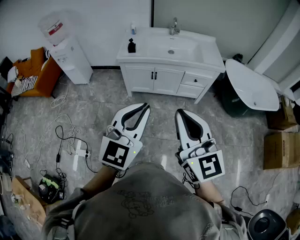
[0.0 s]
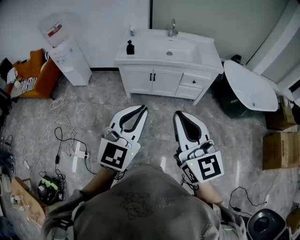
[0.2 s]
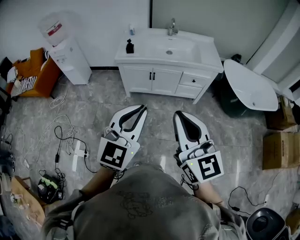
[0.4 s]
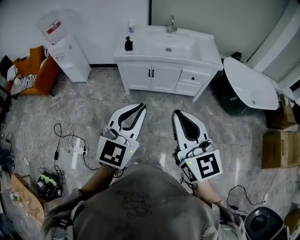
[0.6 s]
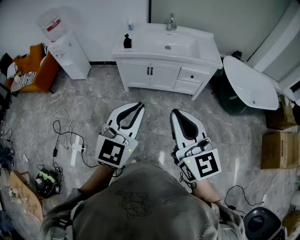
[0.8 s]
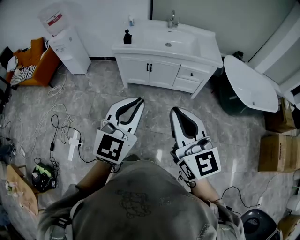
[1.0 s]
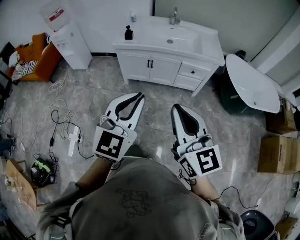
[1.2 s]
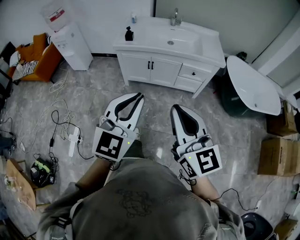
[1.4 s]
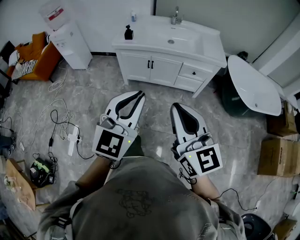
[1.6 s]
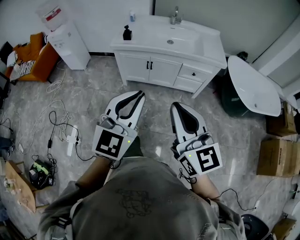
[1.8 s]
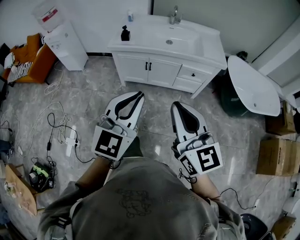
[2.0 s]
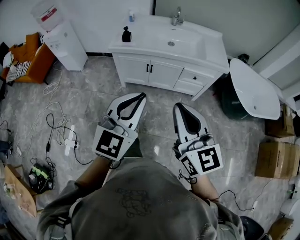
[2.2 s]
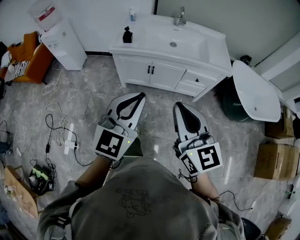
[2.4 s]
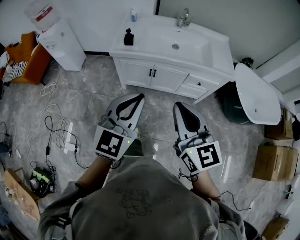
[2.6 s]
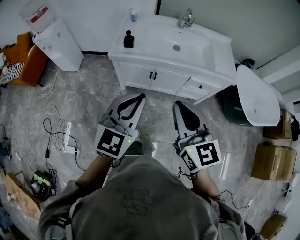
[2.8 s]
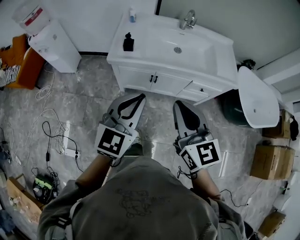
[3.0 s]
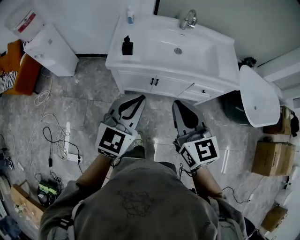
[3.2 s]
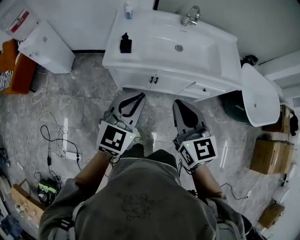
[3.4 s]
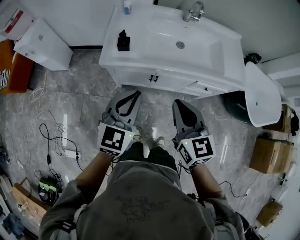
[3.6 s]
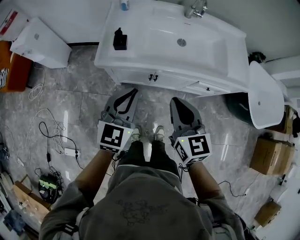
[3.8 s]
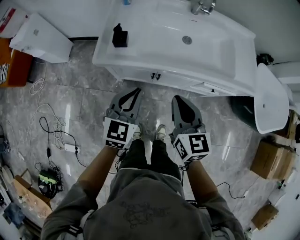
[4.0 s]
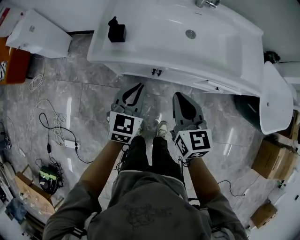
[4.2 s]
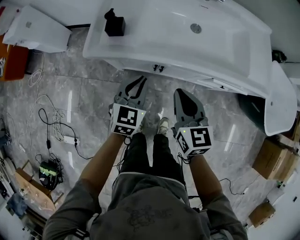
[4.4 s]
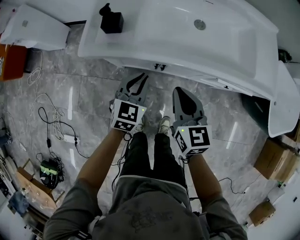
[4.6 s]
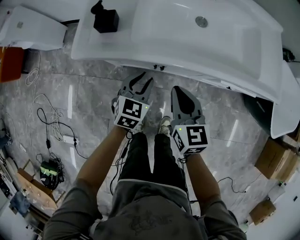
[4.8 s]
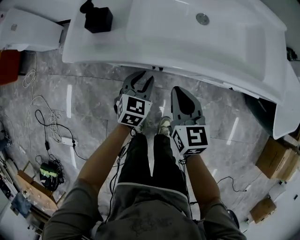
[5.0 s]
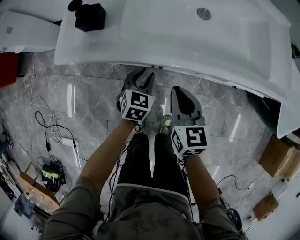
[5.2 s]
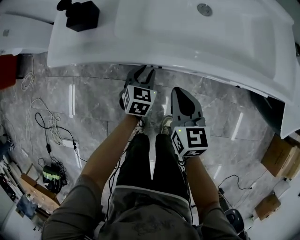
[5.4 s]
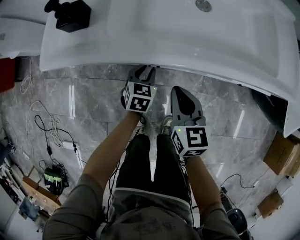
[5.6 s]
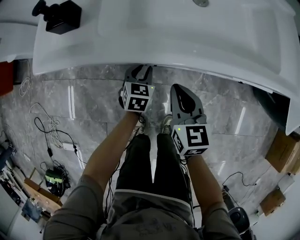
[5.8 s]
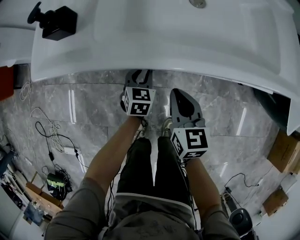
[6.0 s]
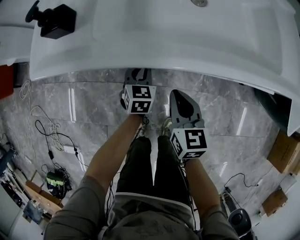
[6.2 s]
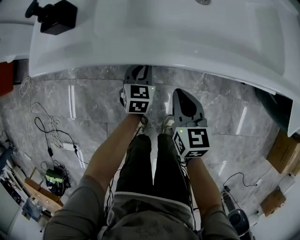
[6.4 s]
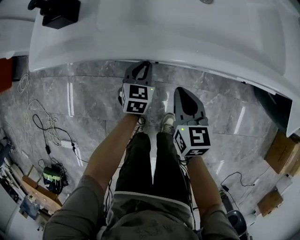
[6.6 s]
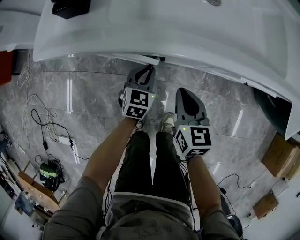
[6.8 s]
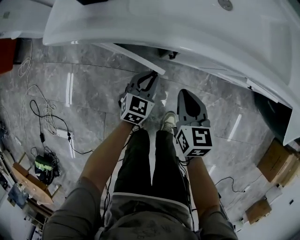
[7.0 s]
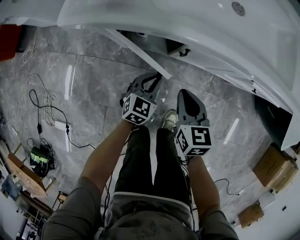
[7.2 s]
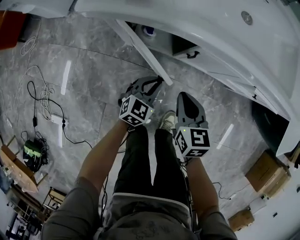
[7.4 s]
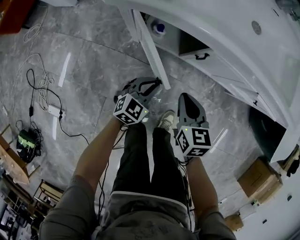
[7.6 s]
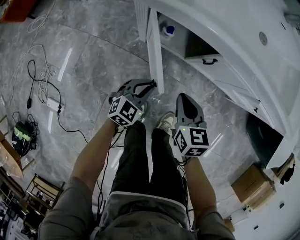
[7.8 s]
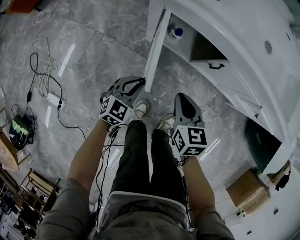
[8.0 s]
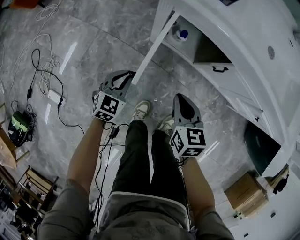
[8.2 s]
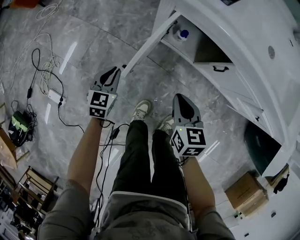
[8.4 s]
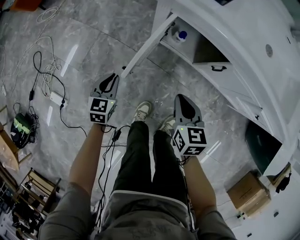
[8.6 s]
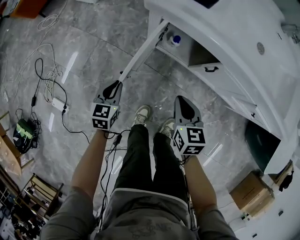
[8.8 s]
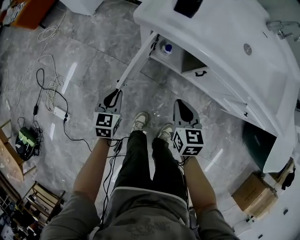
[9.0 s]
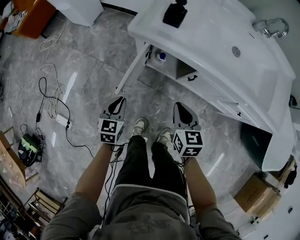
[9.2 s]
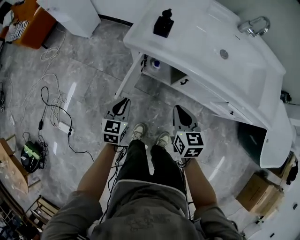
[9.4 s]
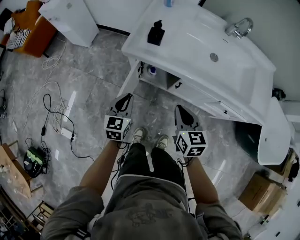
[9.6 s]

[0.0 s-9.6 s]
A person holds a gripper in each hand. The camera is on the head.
0.0 to 1.6 s: The two grippers go some 5 cm to the right.
1.6 to 3.2 s: The grippers both shift forward by roughly 35 cm.
3.2 to 4.8 s: Both grippers move downward and forward, about 40 cm. The left gripper changes its angle by about 30 degrees, and opens its fingers.
4.8 to 6.4 s: Both grippers move downward, roughly 15 cm.
6.4 to 8.0 s: The left gripper is displaced backward and to the left by some 30 cm; the right gripper travels to the left and backward by about 20 cm, and turns by approximately 20 degrees.
8.0 to 9.6 s: The two grippers go about 25 cm upward. The left gripper changes its angle by roughly 30 degrees.

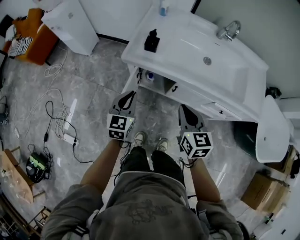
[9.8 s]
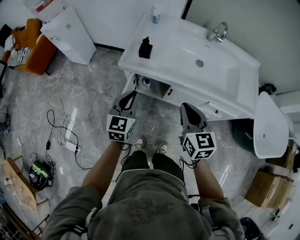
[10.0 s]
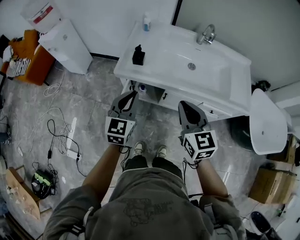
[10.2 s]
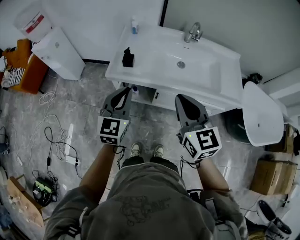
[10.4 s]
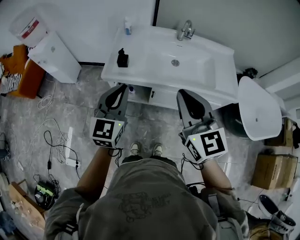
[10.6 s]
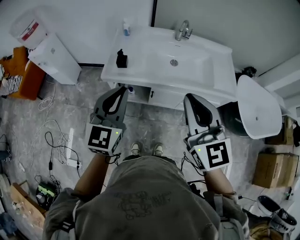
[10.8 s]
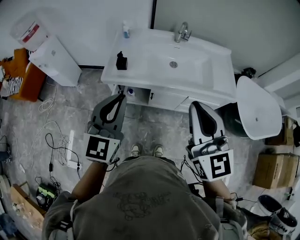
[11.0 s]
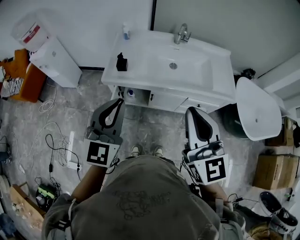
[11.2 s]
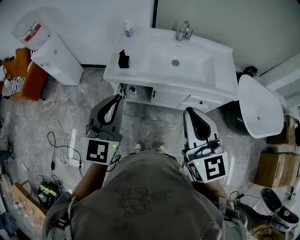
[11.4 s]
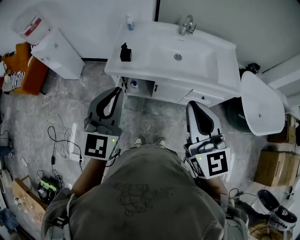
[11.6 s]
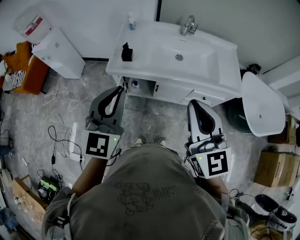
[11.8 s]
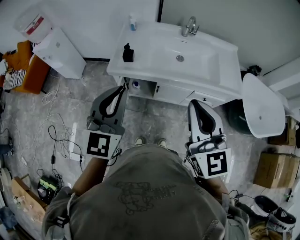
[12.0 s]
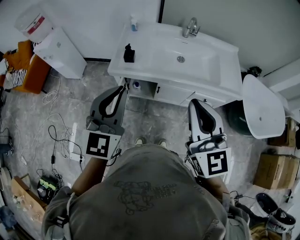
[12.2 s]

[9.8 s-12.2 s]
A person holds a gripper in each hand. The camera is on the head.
9.8 to 11.0 s: The two grippers go about 30 cm upward. The right gripper changes its angle by some 30 degrees. The left gripper rotates roughly 30 degrees.
11.0 to 12.2 s: There are only small adjustments of the grippers.

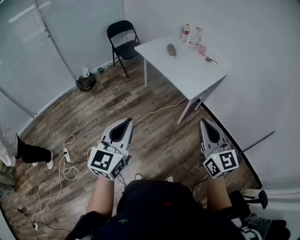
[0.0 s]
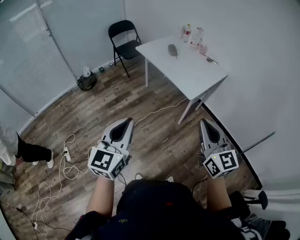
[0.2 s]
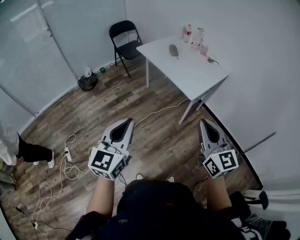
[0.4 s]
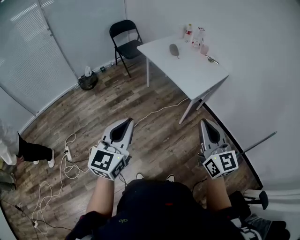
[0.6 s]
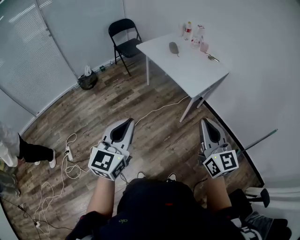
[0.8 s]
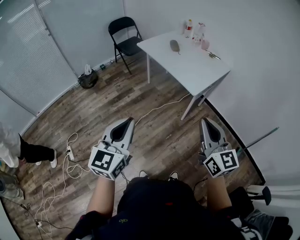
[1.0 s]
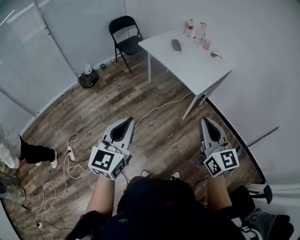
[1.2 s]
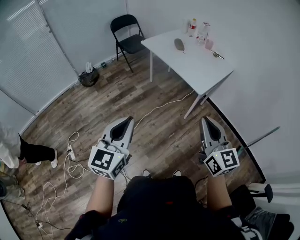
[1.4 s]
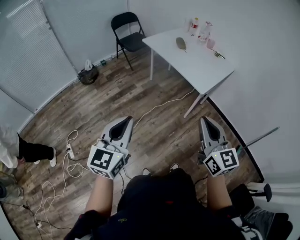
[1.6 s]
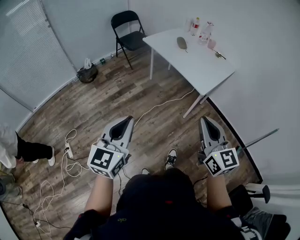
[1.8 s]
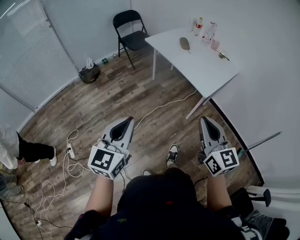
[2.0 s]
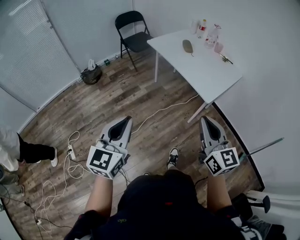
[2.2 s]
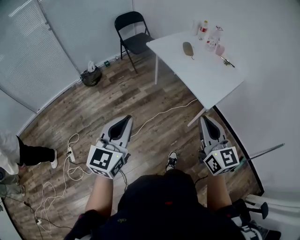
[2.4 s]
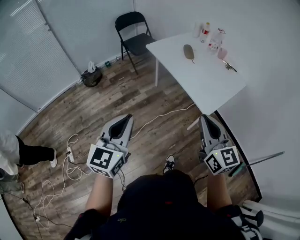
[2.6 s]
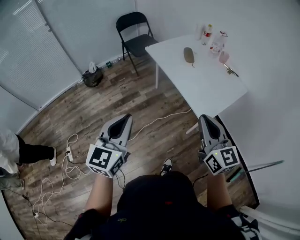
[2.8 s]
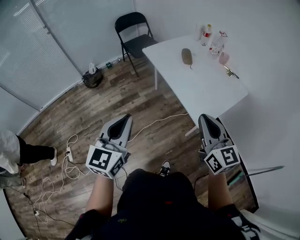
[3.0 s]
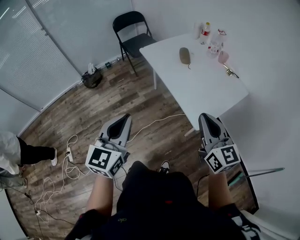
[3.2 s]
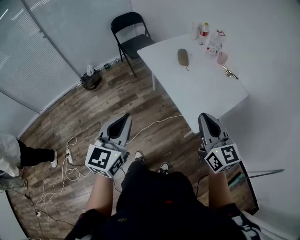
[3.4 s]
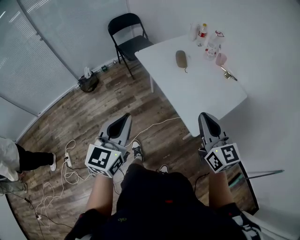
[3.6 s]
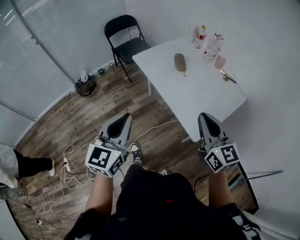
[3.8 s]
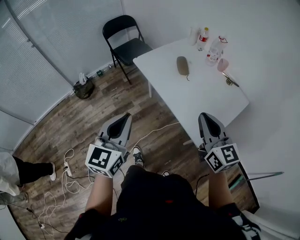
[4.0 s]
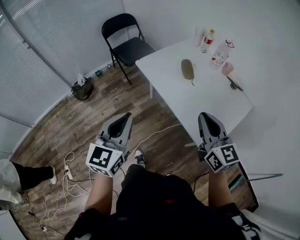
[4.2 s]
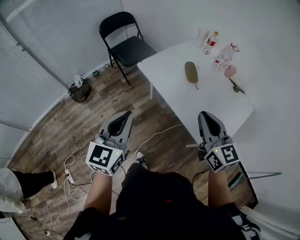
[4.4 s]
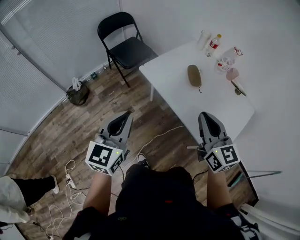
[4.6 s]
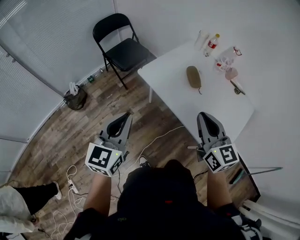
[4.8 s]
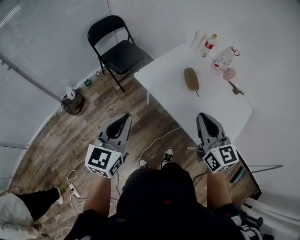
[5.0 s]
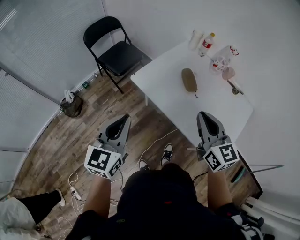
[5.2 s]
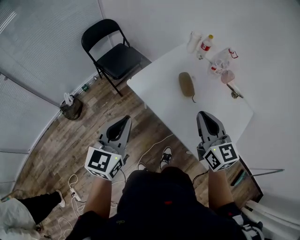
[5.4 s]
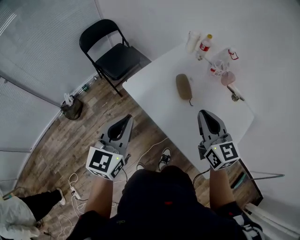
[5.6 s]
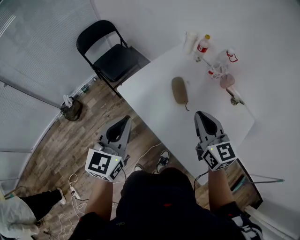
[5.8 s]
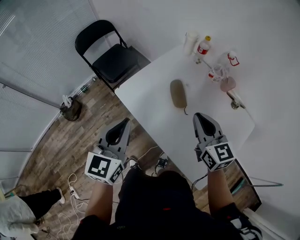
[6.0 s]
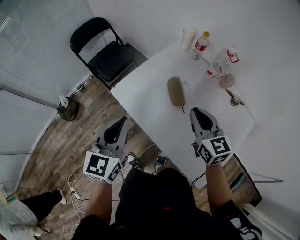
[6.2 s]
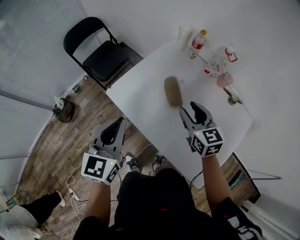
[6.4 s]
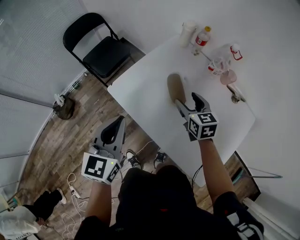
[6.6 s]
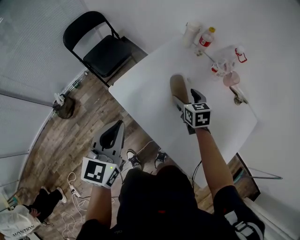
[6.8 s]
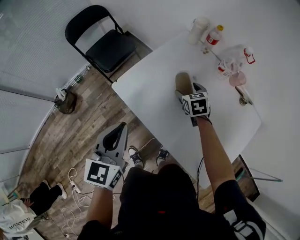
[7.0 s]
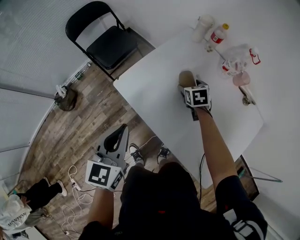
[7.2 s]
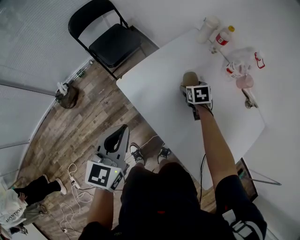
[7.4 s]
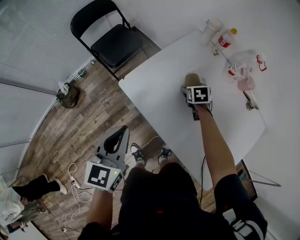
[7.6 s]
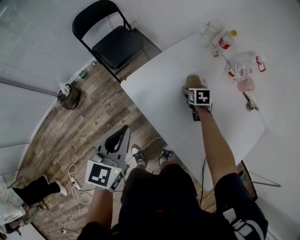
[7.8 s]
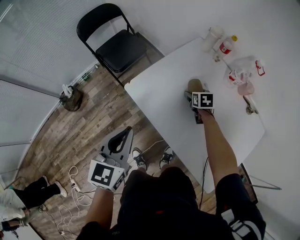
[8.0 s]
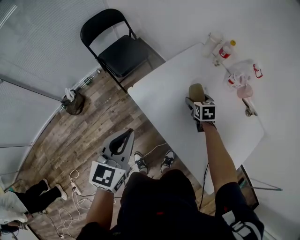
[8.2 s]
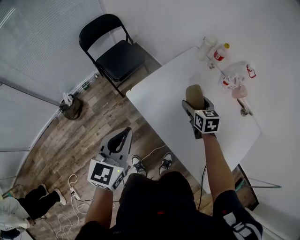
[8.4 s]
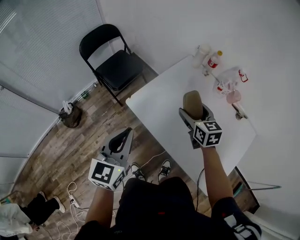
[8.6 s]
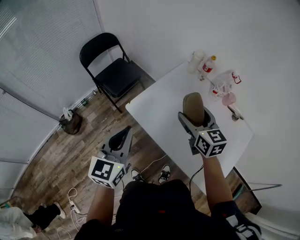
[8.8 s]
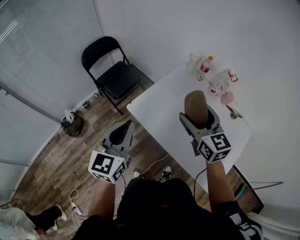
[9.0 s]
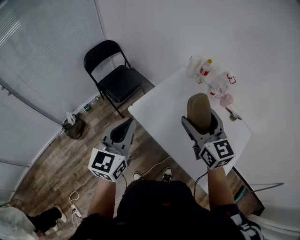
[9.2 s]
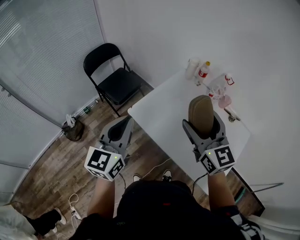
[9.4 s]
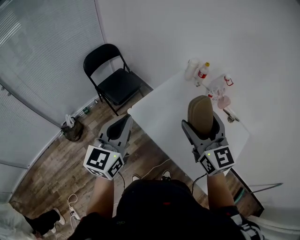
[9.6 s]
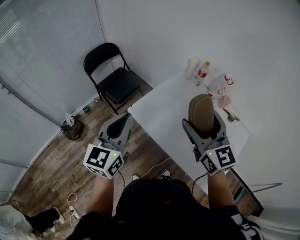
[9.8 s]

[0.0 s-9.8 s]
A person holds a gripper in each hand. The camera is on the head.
0.0 to 1.4 s: The two grippers go about 10 cm to the left.
1.4 to 2.8 s: Both grippers travel together forward, about 25 cm.
2.8 to 4.2 s: The grippers both shift forward by about 25 cm.
4.2 to 5.6 s: The two grippers go roughly 25 cm forward.
5.6 to 7.0 s: The right gripper goes some 35 cm downward and forward, tips its fingers downward by about 40 degrees, and opens its fingers. Meanwhile the left gripper is displaced forward and downward by roughly 10 cm.
7.0 to 8.4 s: The left gripper goes approximately 5 cm to the left. Meanwhile the right gripper is displaced upward by about 10 cm.
8.4 to 9.8 s: The left gripper is displaced upward by some 15 cm; the right gripper is displaced upward and backward by about 35 cm, and tilts its fingers about 30 degrees upward.

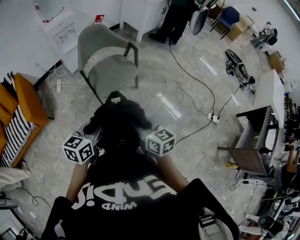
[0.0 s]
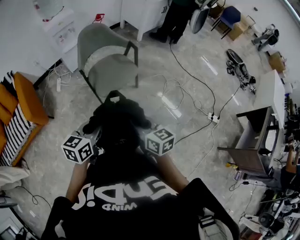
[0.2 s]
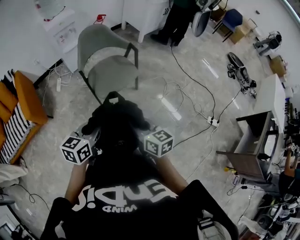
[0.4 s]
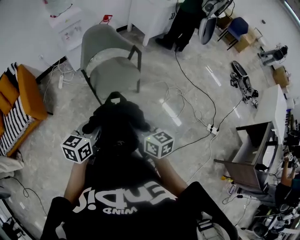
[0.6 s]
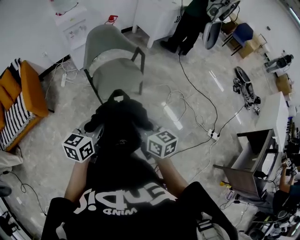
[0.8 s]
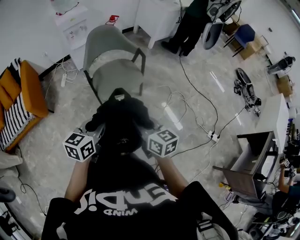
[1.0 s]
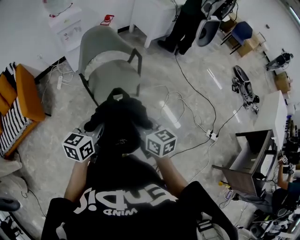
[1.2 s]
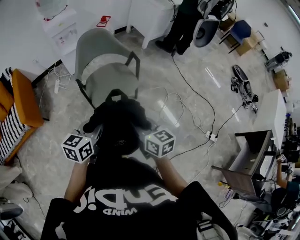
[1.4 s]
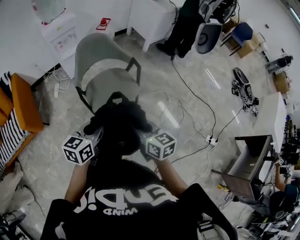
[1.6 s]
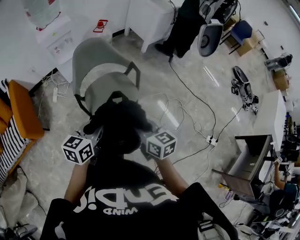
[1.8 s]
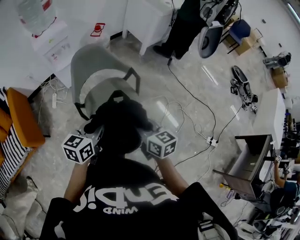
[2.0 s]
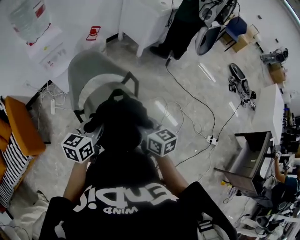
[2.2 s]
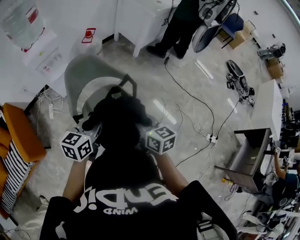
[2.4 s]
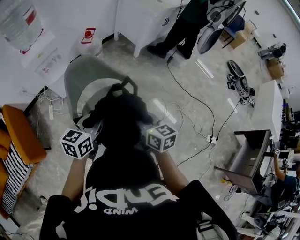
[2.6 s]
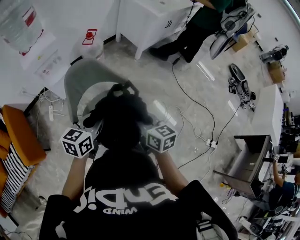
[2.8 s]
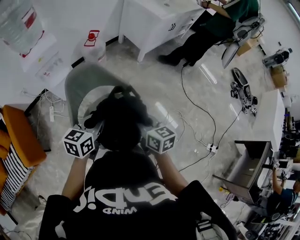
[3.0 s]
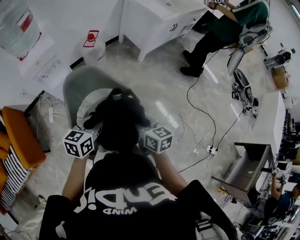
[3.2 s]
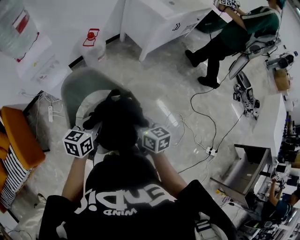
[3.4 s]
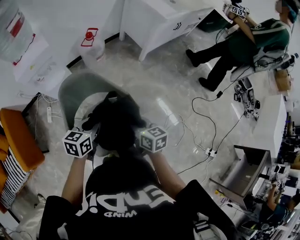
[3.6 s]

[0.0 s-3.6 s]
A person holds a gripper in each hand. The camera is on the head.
0.0 to 1.8 s: The two grippers go roughly 25 cm forward.
1.8 to 3.6 s: Both grippers travel together forward, approximately 35 cm.
